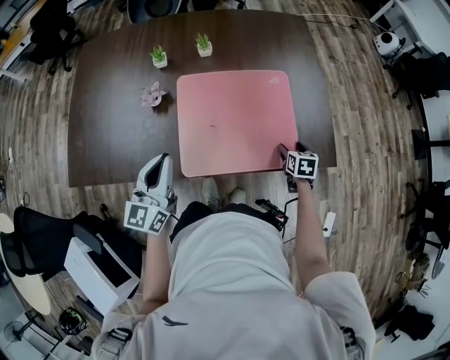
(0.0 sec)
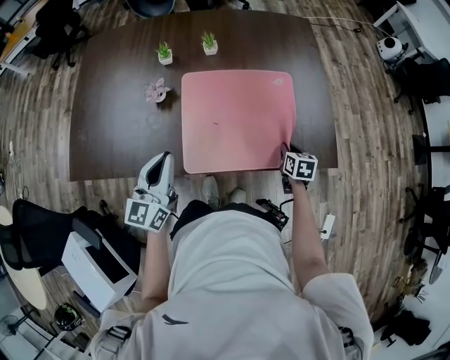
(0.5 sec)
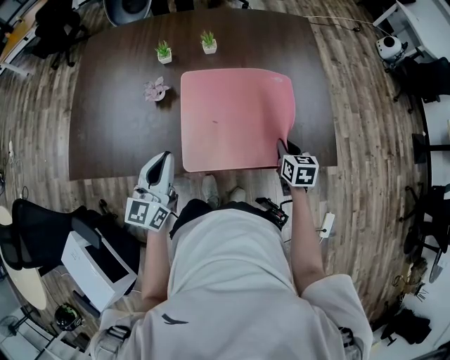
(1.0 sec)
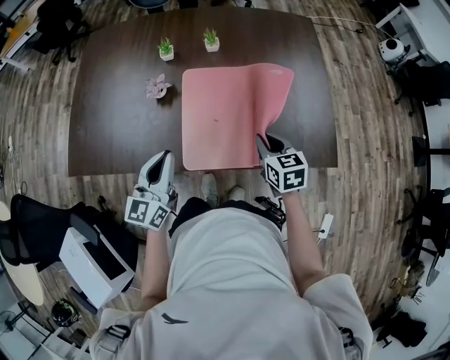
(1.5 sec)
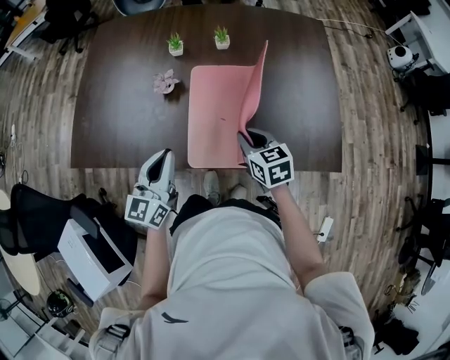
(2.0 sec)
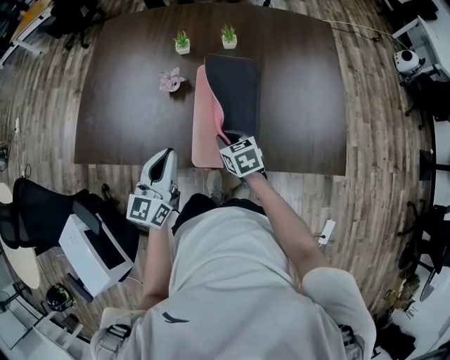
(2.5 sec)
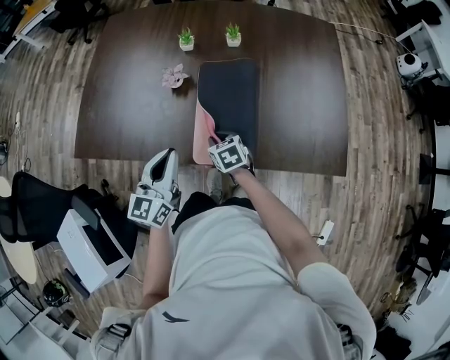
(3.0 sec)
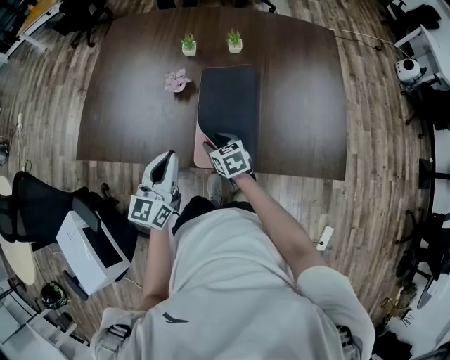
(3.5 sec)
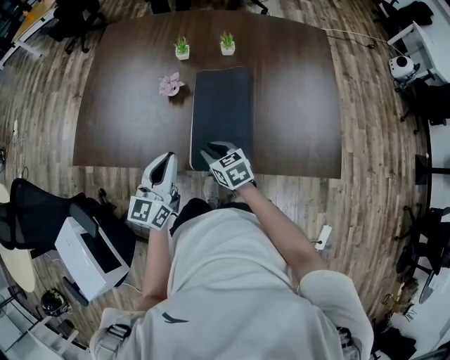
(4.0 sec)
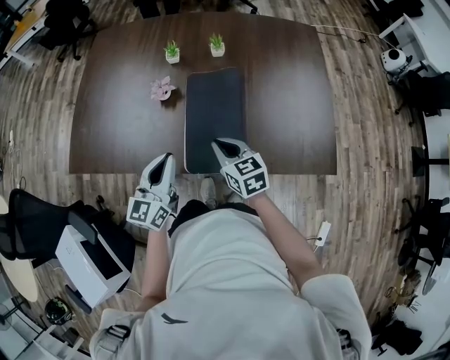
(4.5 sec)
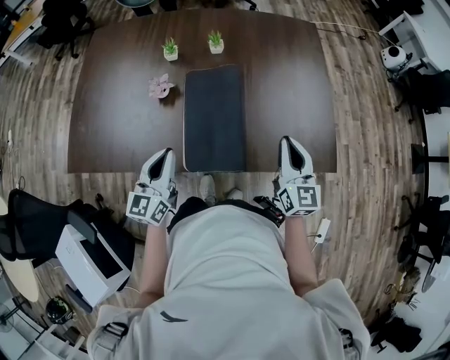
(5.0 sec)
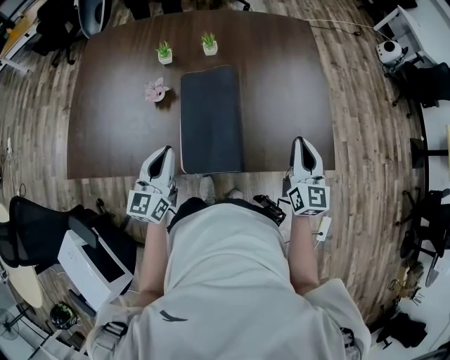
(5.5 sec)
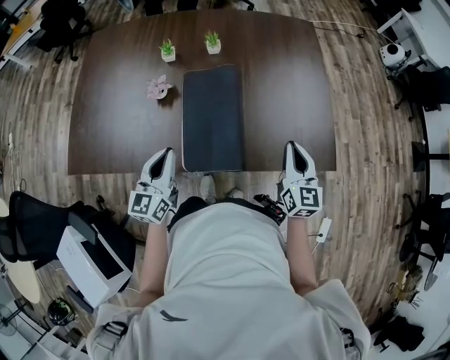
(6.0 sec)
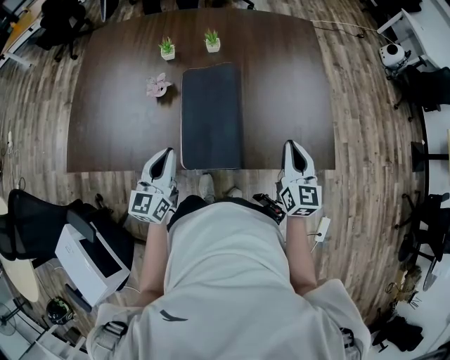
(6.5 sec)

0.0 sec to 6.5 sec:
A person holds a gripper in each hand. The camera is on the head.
0.0 sec to 2.0 sec: The right gripper travels to the left and upward by about 30 cm, changes its angle by about 40 degrees, and closes.
2.0 sec to 4.5 sec: The right gripper goes approximately 5 cm to the left, goes downward and returns, about 10 cm each way, and opens and closes again.
4.5 sec to 6.5 sec: The right gripper goes roughly 20 cm to the right, and turns by some 40 degrees.

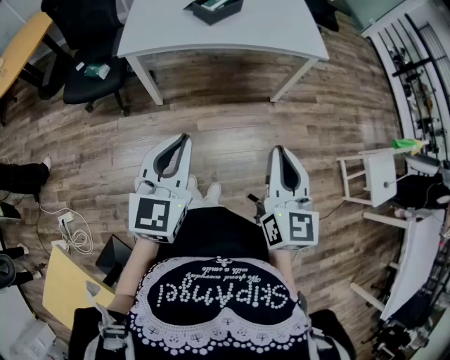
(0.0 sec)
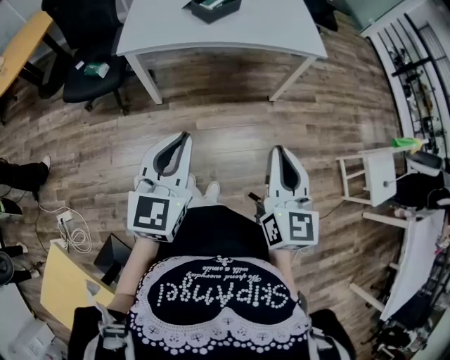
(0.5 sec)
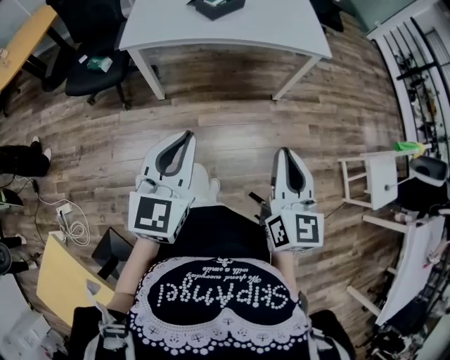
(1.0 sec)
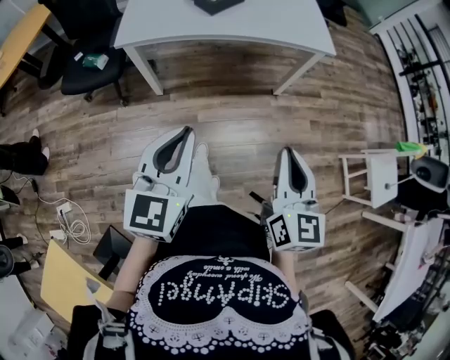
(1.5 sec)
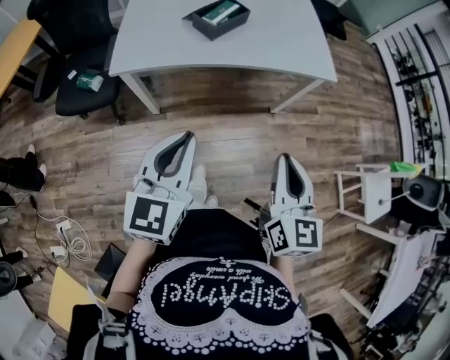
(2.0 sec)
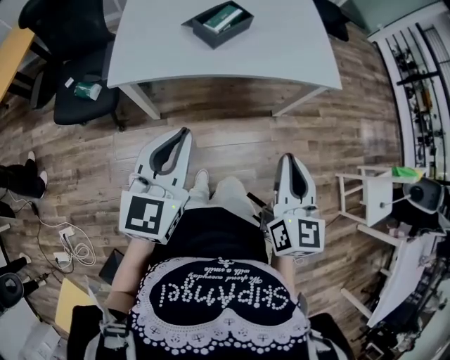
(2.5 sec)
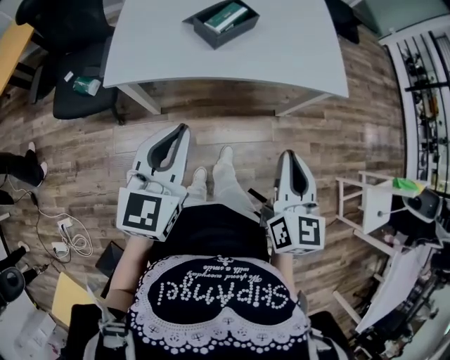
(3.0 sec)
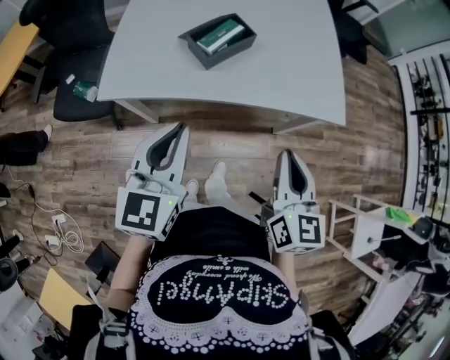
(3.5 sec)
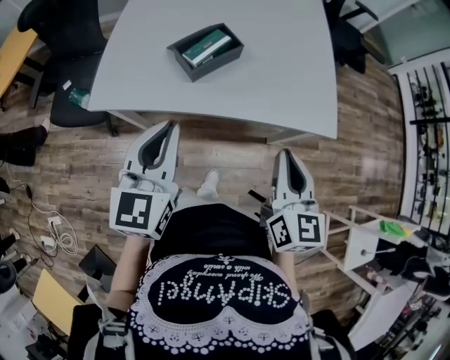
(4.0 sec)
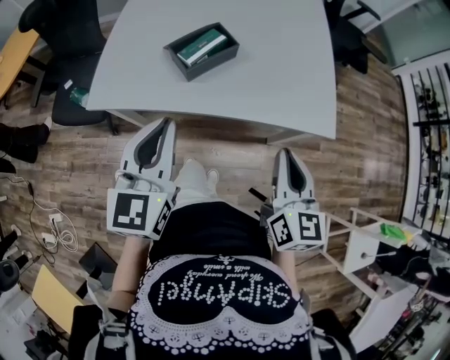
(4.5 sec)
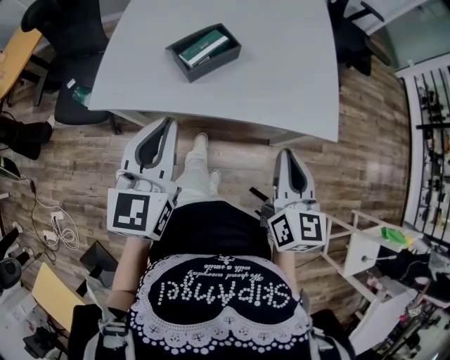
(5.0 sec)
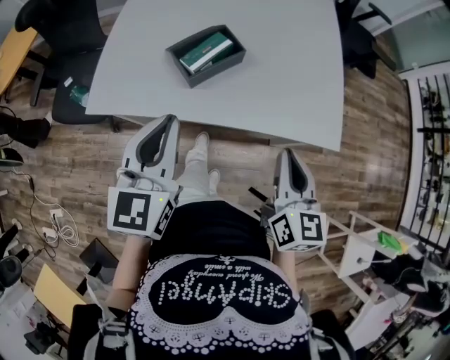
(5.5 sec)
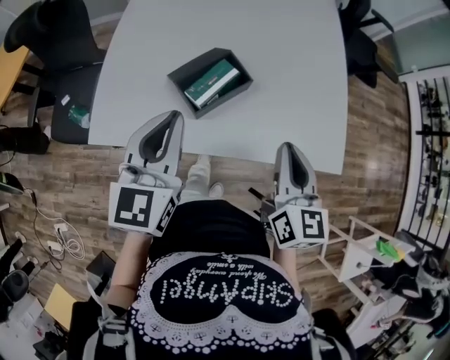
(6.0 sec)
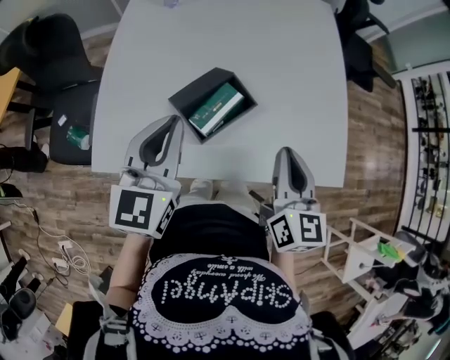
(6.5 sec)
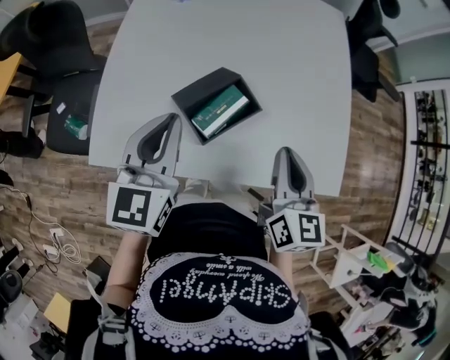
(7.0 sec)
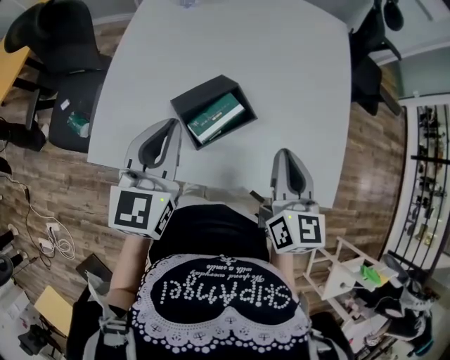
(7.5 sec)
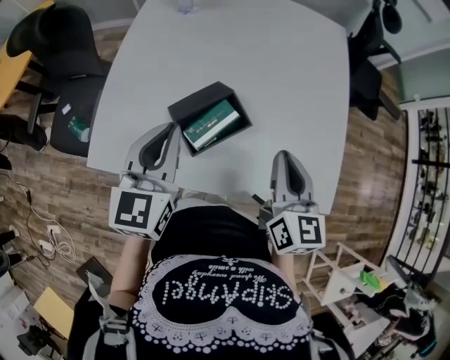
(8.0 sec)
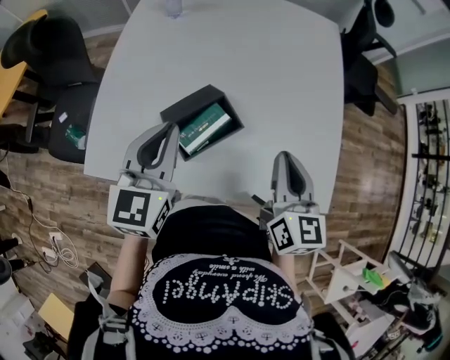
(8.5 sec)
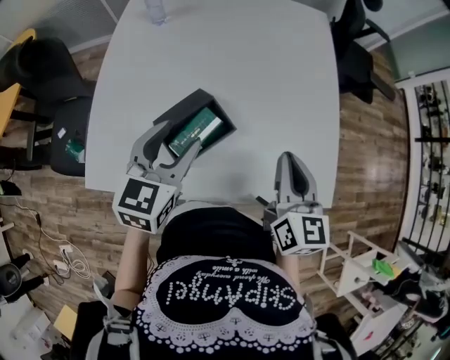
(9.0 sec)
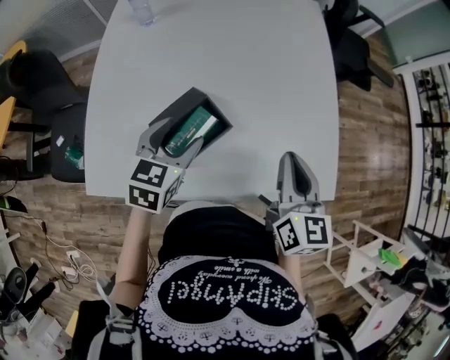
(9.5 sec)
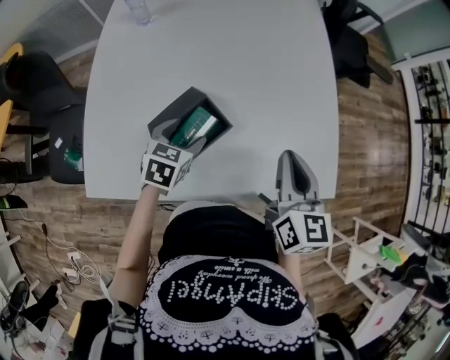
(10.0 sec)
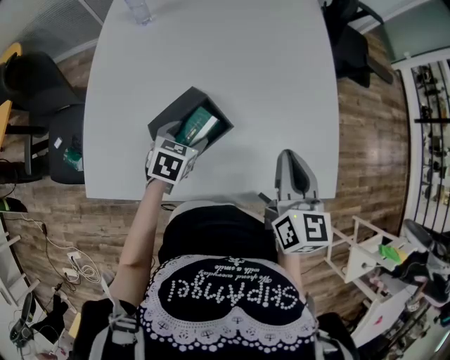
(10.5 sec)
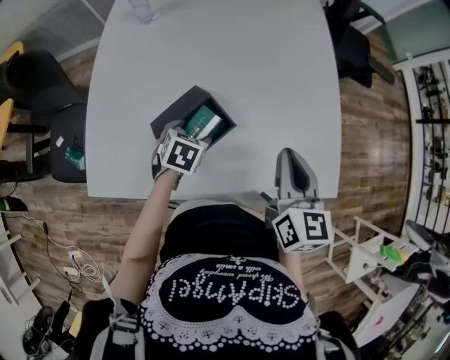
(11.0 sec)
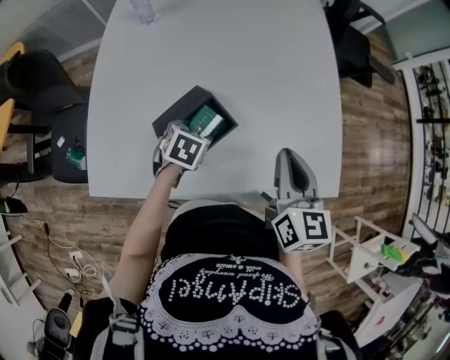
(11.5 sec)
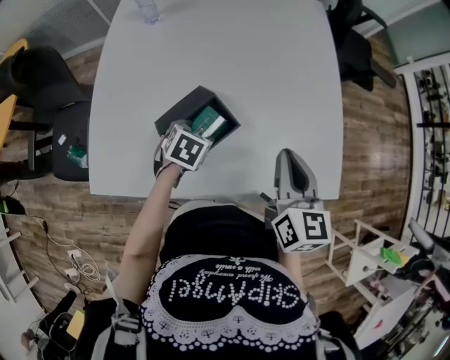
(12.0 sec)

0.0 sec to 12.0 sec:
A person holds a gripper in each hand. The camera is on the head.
0.0 sec to 2.0 sec: The grippers both shift forward by roughly 15 cm.
2.0 sec to 4.0 sec: Both grippers travel together forward, approximately 25 cm.
4.0 sec to 6.0 sec: The two grippers go some 15 cm forward.
6.0 sec to 8.0 sec: Both grippers travel together forward, about 10 cm.
8.0 sec to 10.0 sec: The right gripper is displaced to the right by approximately 5 cm; the left gripper goes approximately 20 cm downward, tips its fingers downward by approximately 30 degrees, and opens.
10.0 sec to 12.0 sec: The grippers move only a little.

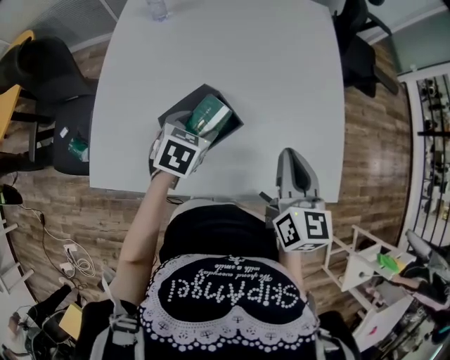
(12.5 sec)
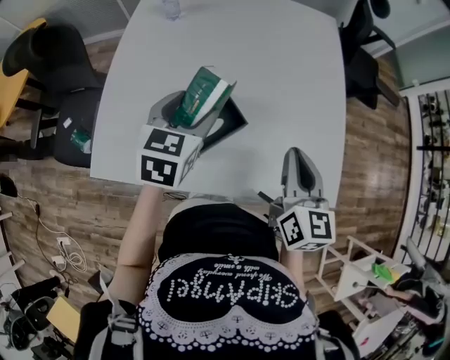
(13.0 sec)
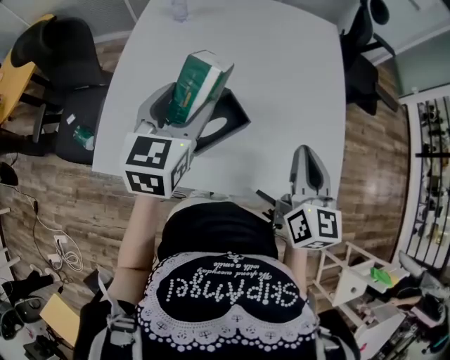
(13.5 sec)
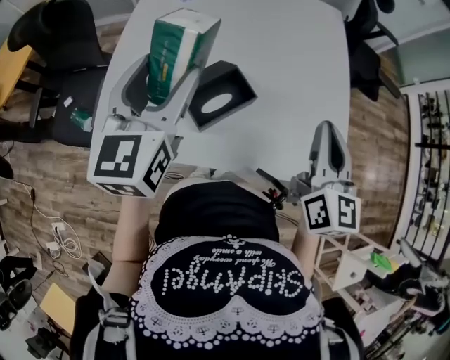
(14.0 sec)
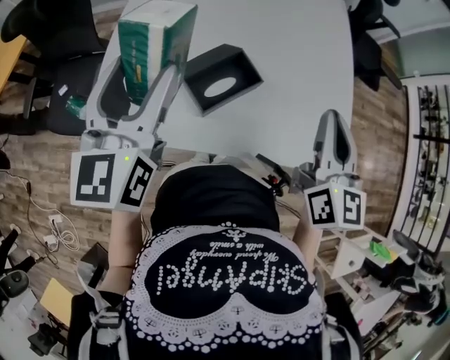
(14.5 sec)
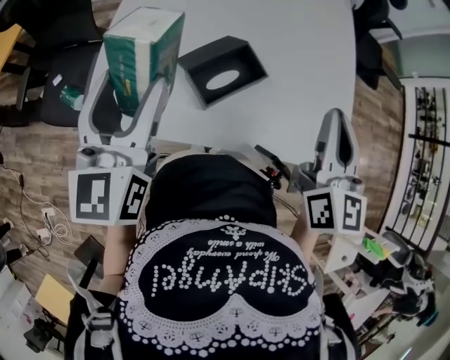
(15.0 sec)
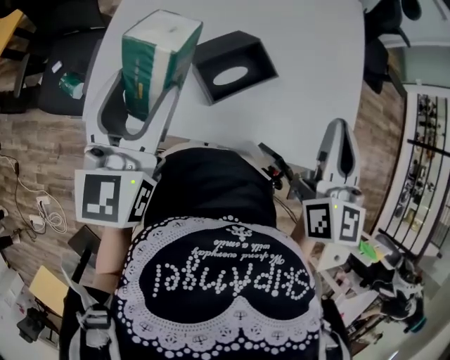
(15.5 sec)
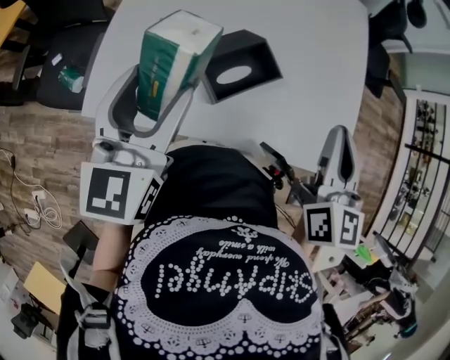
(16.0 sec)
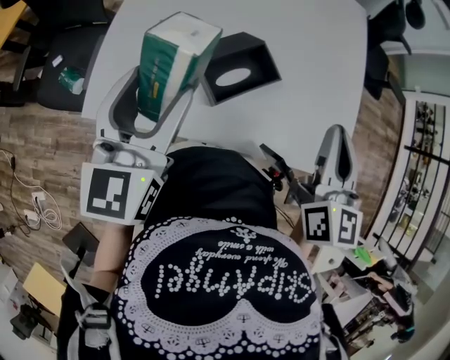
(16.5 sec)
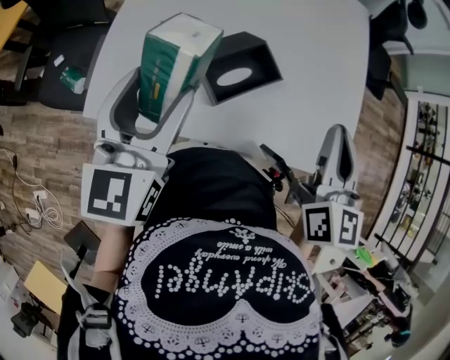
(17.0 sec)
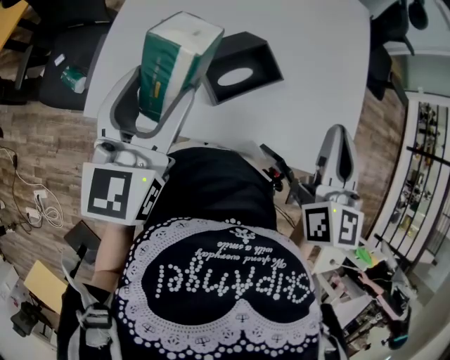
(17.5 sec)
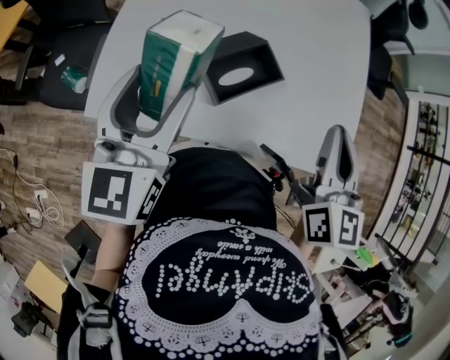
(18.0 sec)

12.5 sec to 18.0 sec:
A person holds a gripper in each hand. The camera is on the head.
12.5 sec to 14.5 sec: The right gripper goes about 10 cm upward. The left gripper moves upward and to the left, approximately 30 cm, and tips its fingers upward by about 50 degrees.
14.5 sec to 16.0 sec: The left gripper heads downward, covering about 5 cm.
16.0 sec to 18.0 sec: Neither gripper changes place.

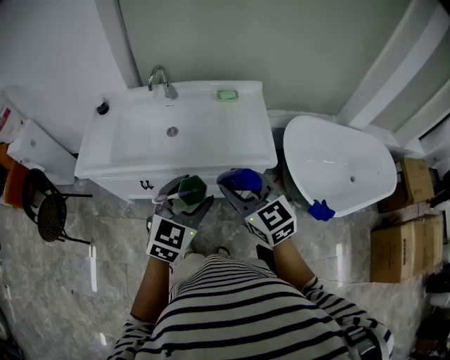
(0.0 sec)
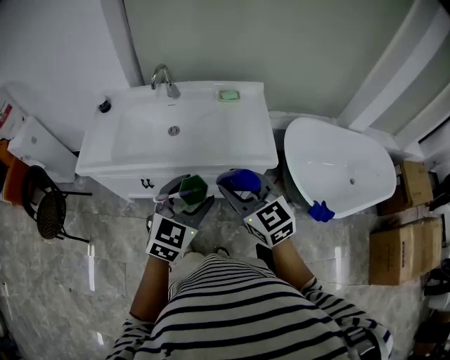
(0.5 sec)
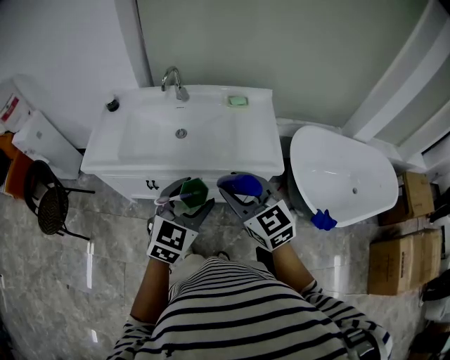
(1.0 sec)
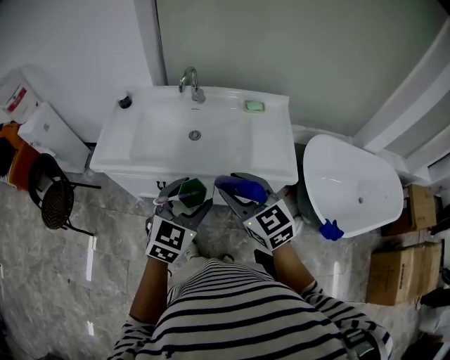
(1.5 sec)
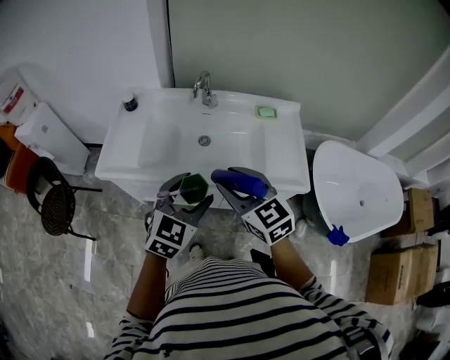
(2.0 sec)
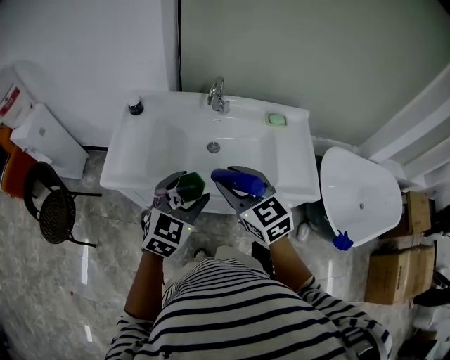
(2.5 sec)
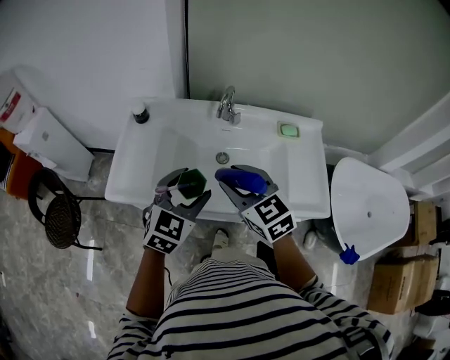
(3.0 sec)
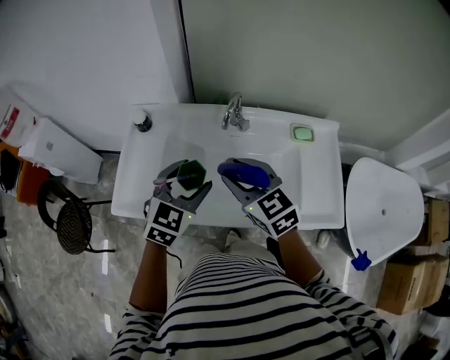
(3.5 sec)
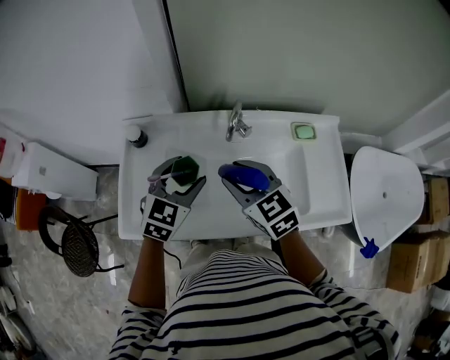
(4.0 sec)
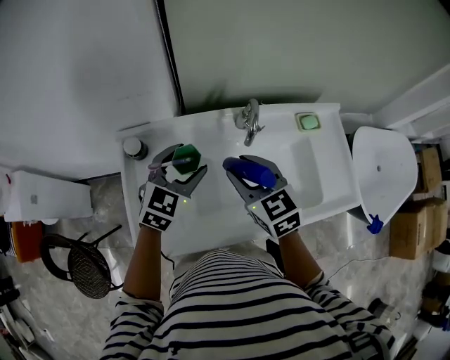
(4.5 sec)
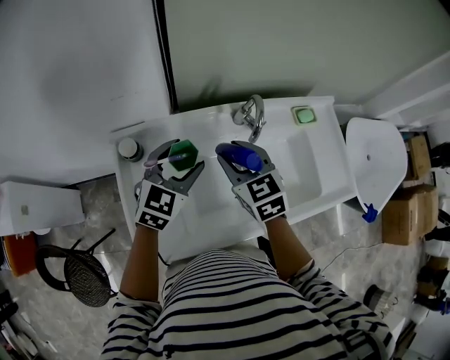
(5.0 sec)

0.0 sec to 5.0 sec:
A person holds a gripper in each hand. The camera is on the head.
0.0 sec to 2.5 sec: The two grippers go roughly 25 cm to the left and forward.
2.5 sec to 5.0 sec: The right gripper moves forward, roughly 30 cm, and turns by approximately 30 degrees, while the left gripper is displaced forward and to the left by approximately 40 cm.
